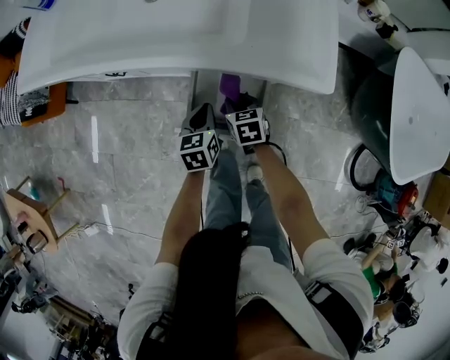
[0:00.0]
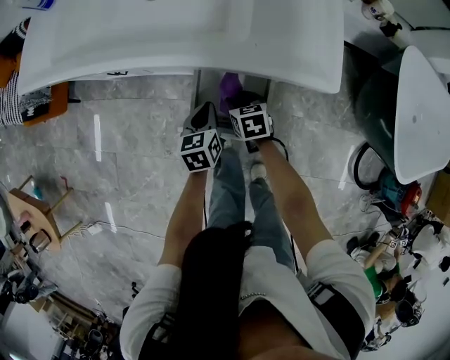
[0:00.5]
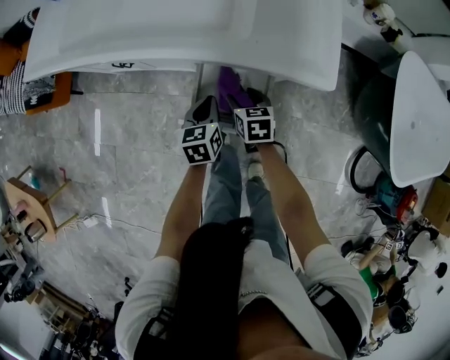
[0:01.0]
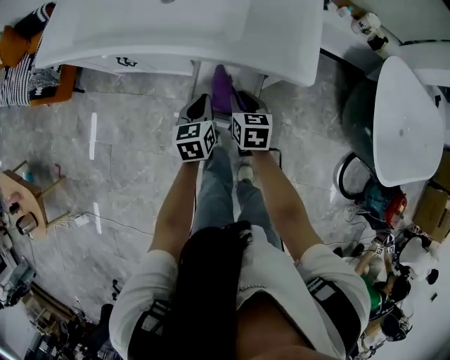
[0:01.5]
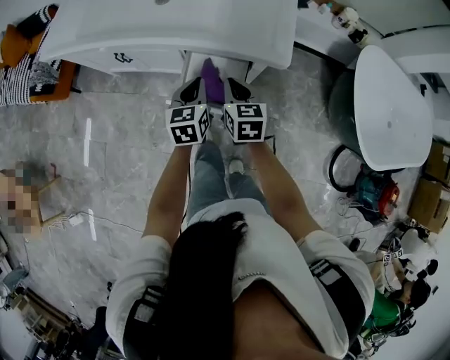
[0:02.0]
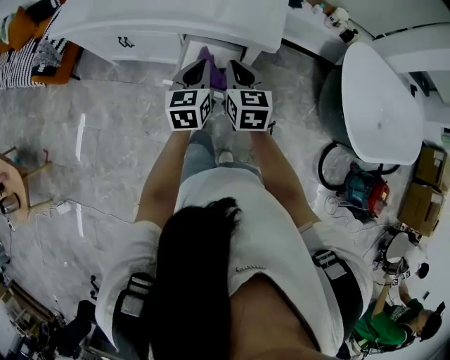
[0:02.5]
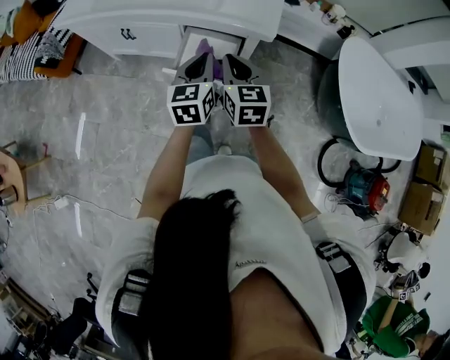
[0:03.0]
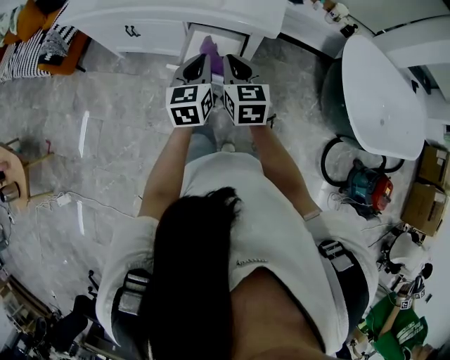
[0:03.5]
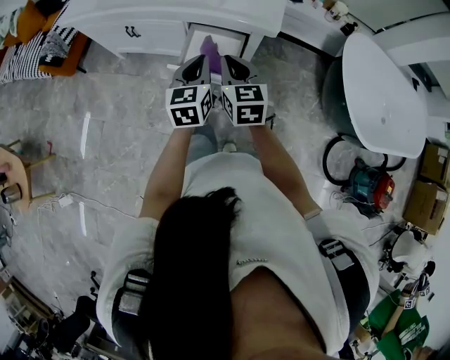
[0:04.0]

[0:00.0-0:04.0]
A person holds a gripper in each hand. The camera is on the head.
0:00.0 to 0:02.0: Both grippers travel together upward, about 20 cm. The right gripper rotates about 20 degrees, and opens and closes again.
0:02.0 to 0:04.0: Both grippers move backward and upward, some 15 cm.

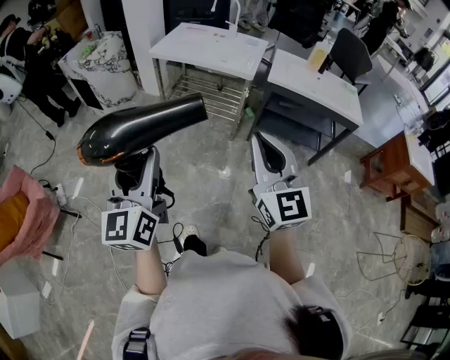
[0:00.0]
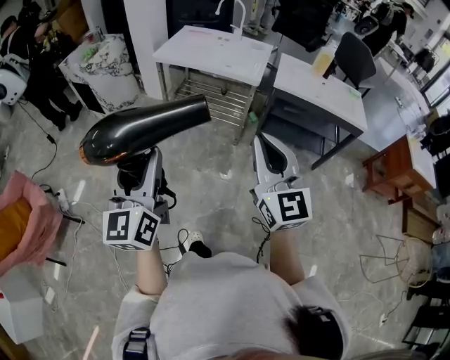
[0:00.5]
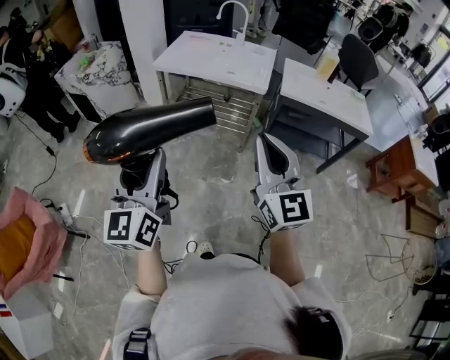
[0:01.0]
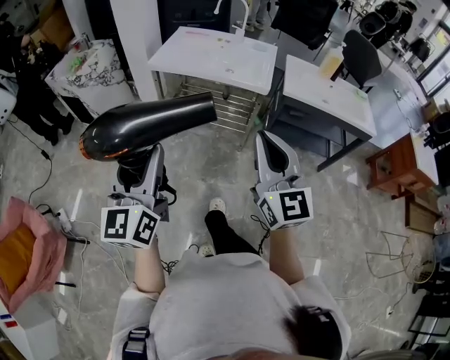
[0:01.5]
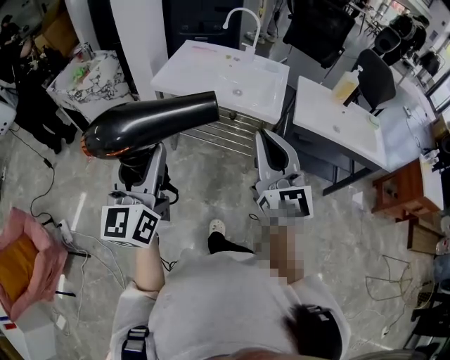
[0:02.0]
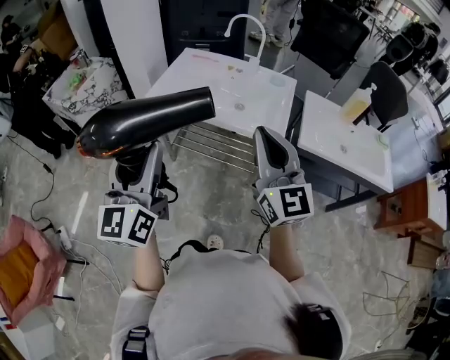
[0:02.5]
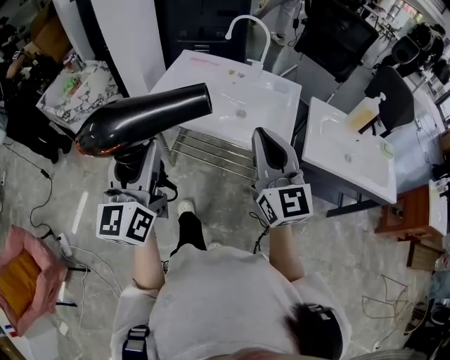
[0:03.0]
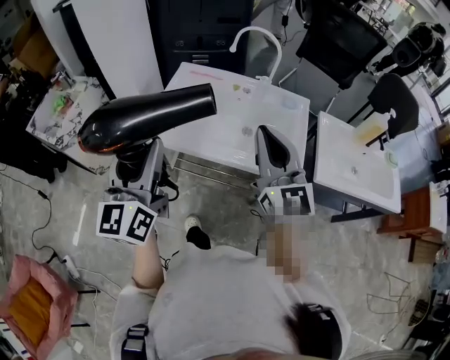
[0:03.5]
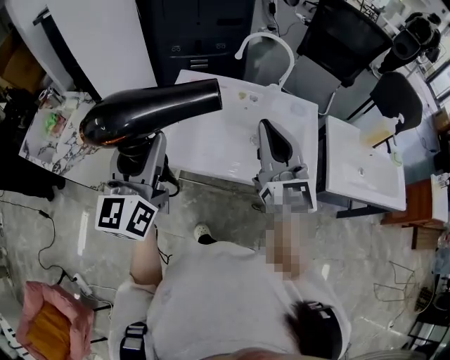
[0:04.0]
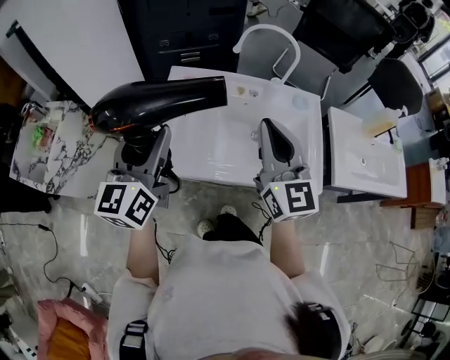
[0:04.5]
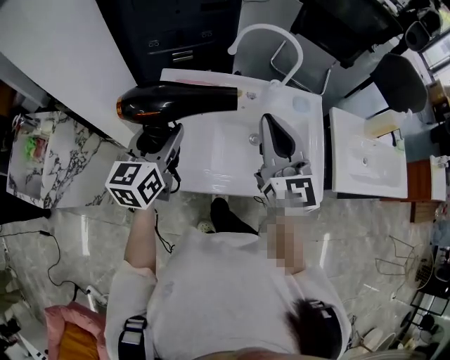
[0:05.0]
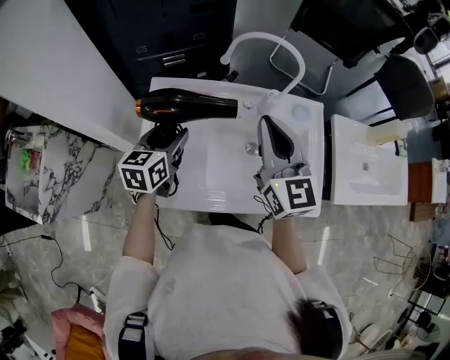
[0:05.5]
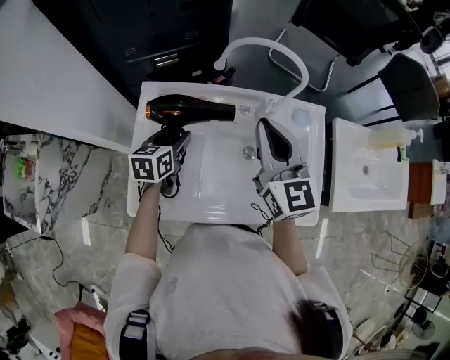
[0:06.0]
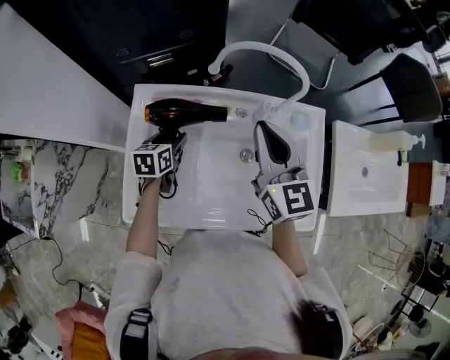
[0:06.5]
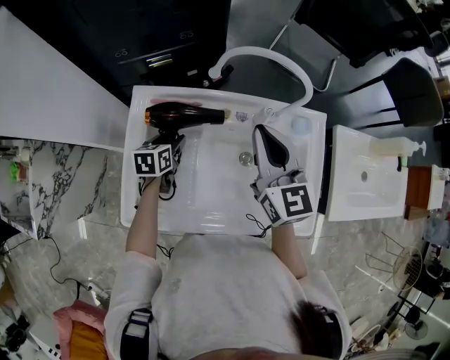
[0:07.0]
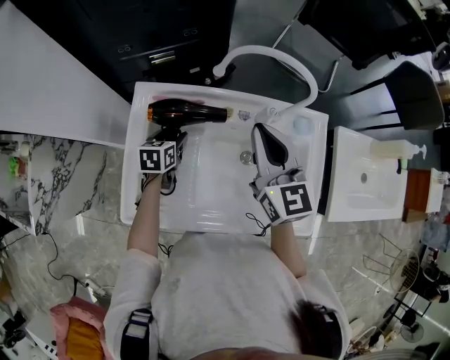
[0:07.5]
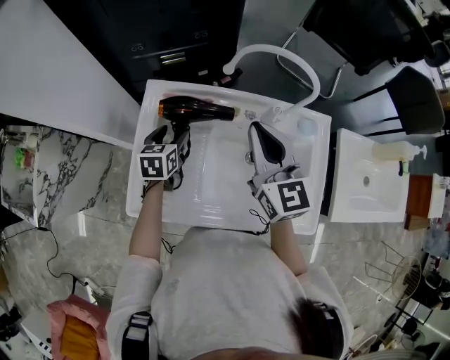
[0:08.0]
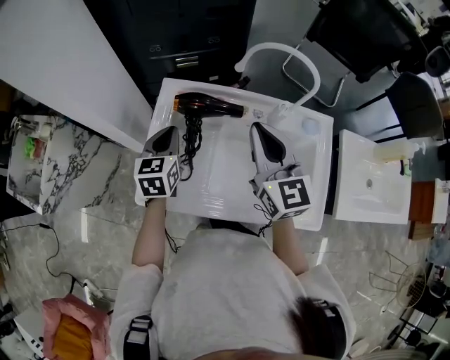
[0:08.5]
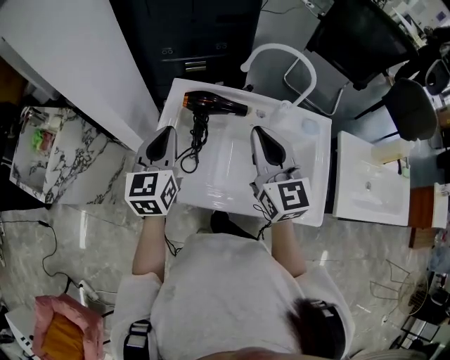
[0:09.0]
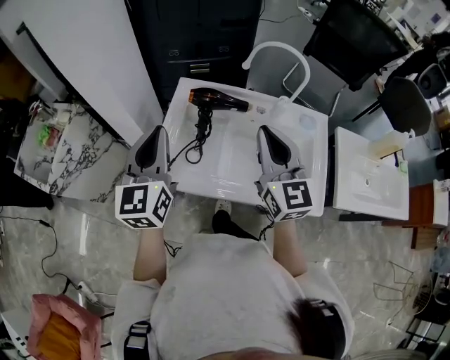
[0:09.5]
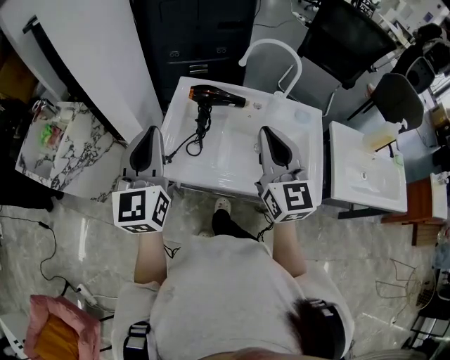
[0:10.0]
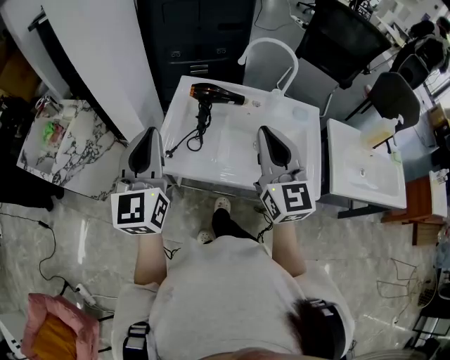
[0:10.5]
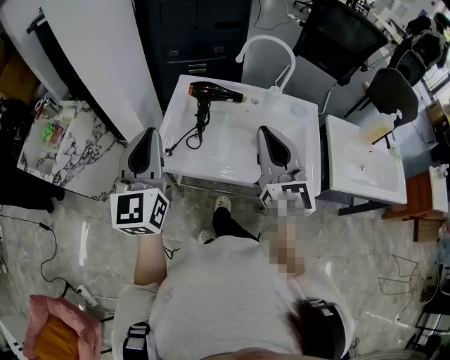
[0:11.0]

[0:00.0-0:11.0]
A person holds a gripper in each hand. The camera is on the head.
0:00.0 to 0:02.0: Both grippers travel together forward, approximately 30 cm.
0:02.0 to 0:03.5: The two grippers go some 35 cm forward.
0:03.5 to 0:05.5: The left gripper is displaced forward and downward by about 50 cm, and tips its fingers downward by approximately 40 degrees. Meanwhile the right gripper goes about 30 cm forward.
0:05.5 to 0:07.5: The right gripper is displaced forward and downward by approximately 10 cm. Meanwhile the left gripper heads downward and forward, covering some 20 cm, and swivels about 20 degrees.
0:07.5 to 0:09.0: The left gripper shifts approximately 30 cm upward and backward, angles its fingers upward, by some 40 degrees, and closes up; the right gripper moves backward, to the left and upward, approximately 15 cm.
0:09.0 to 0:11.0: The left gripper moves backward and upward, some 20 cm. The right gripper is displaced backward by about 15 cm.

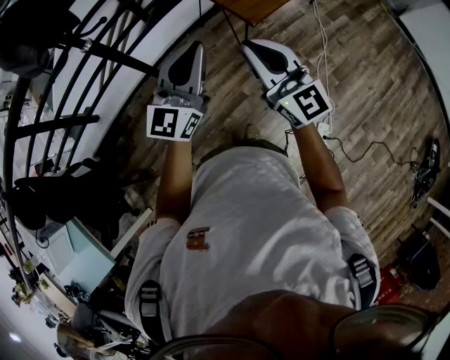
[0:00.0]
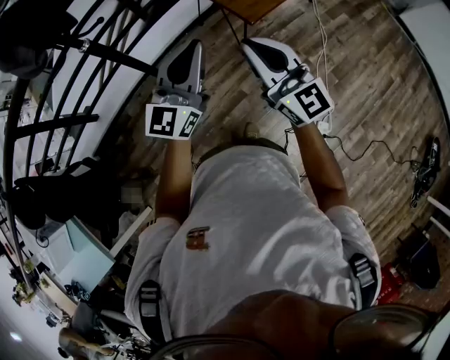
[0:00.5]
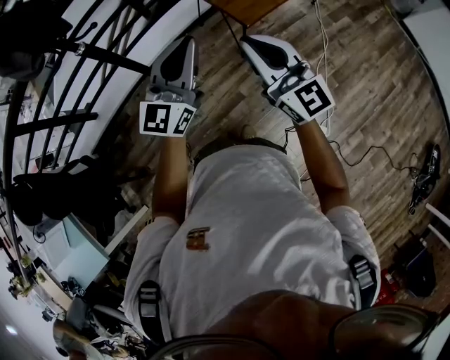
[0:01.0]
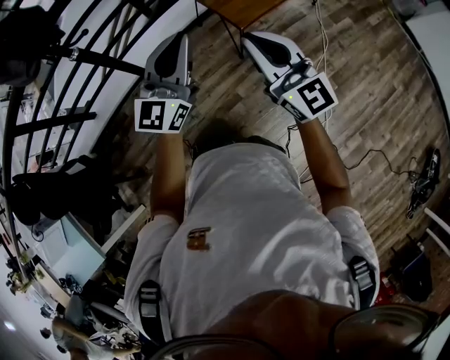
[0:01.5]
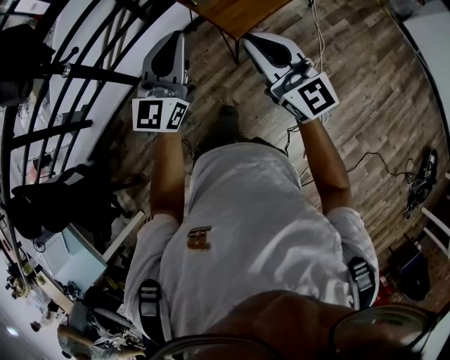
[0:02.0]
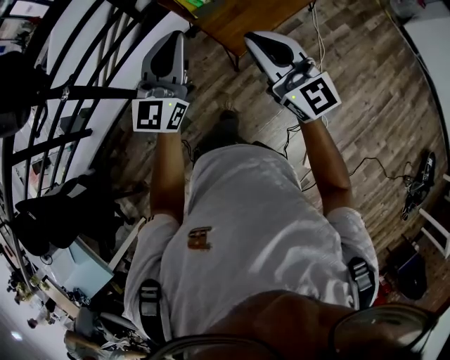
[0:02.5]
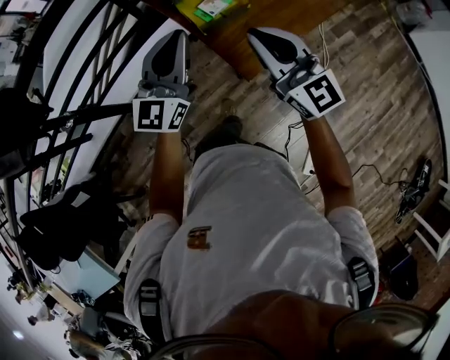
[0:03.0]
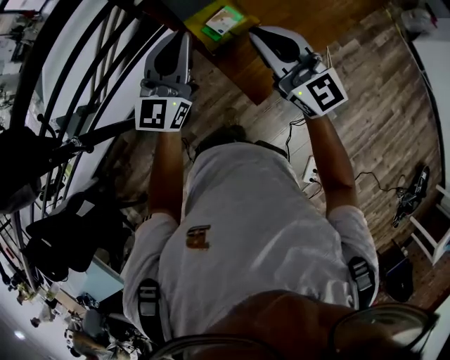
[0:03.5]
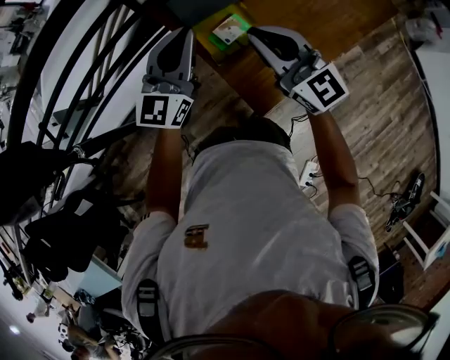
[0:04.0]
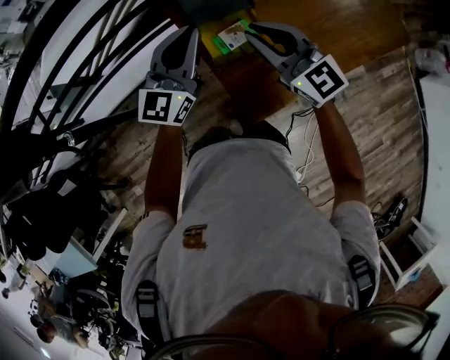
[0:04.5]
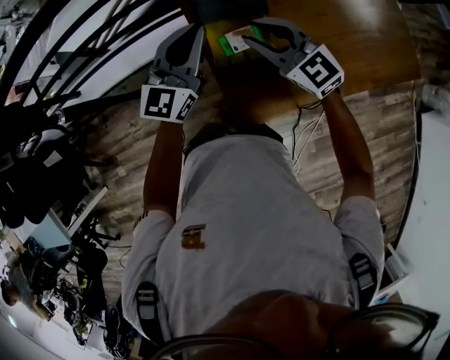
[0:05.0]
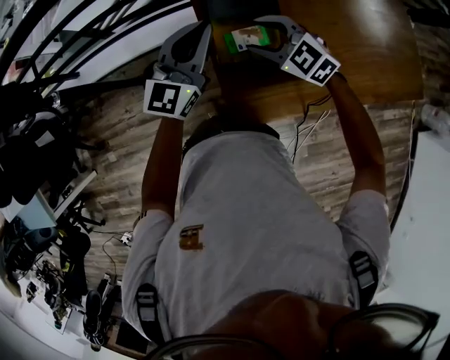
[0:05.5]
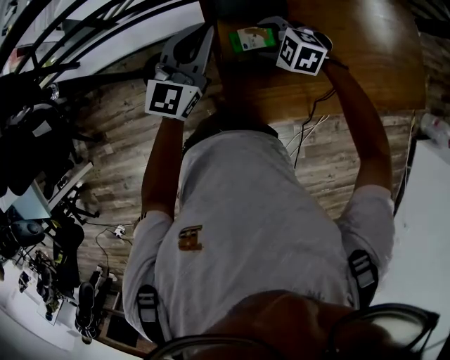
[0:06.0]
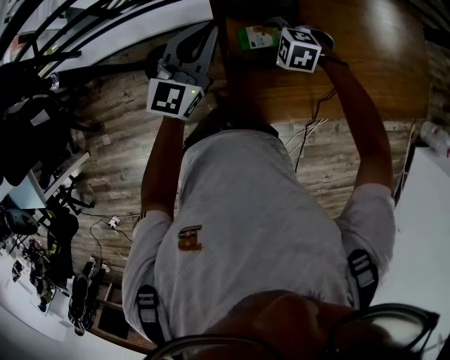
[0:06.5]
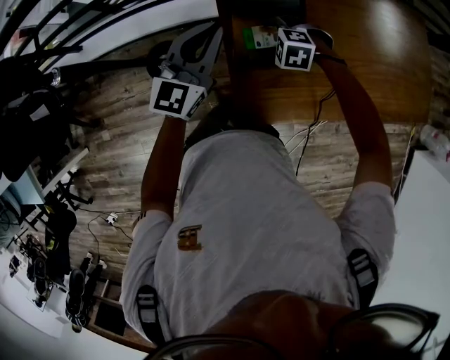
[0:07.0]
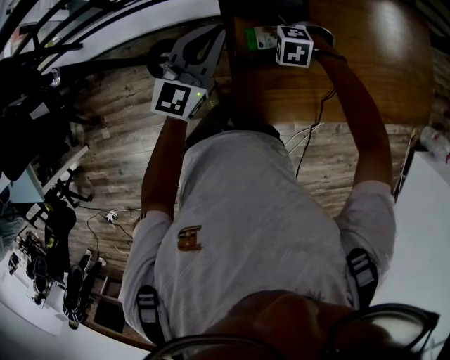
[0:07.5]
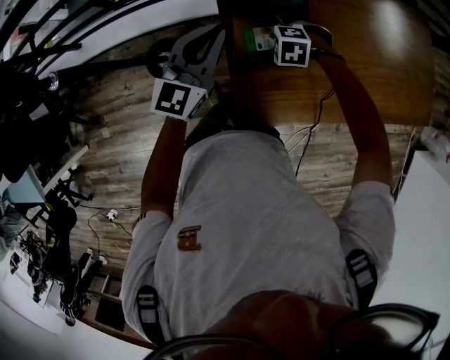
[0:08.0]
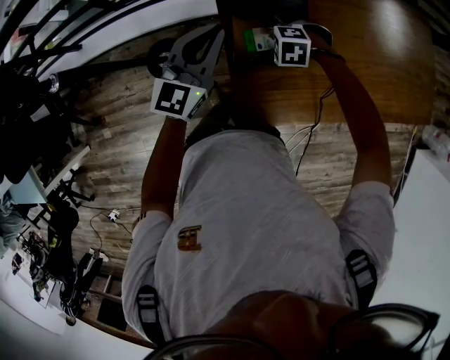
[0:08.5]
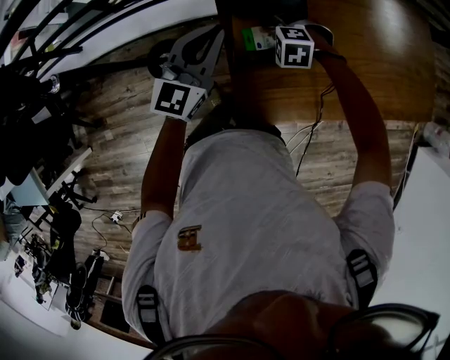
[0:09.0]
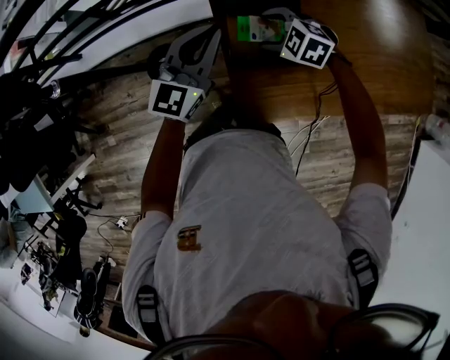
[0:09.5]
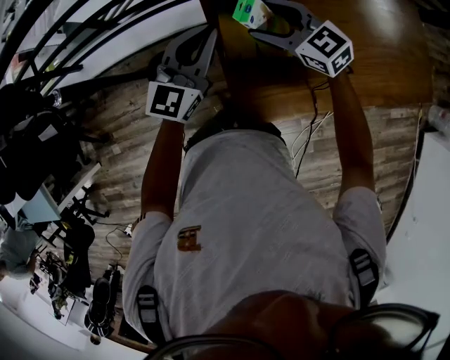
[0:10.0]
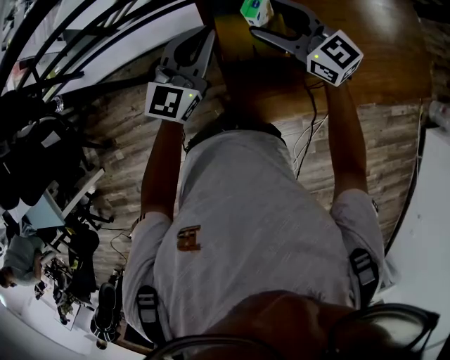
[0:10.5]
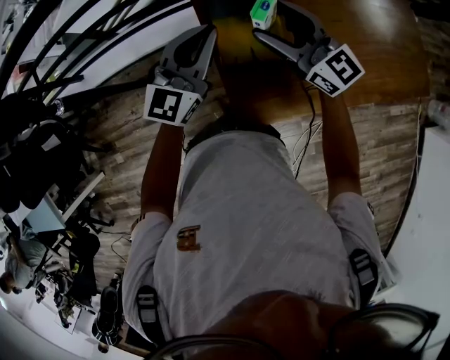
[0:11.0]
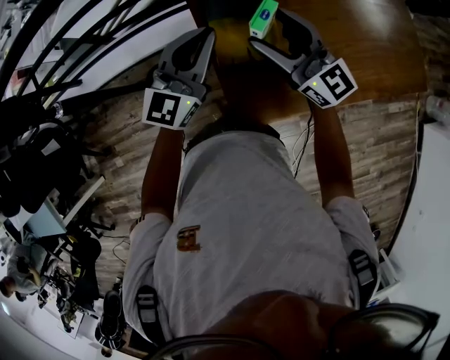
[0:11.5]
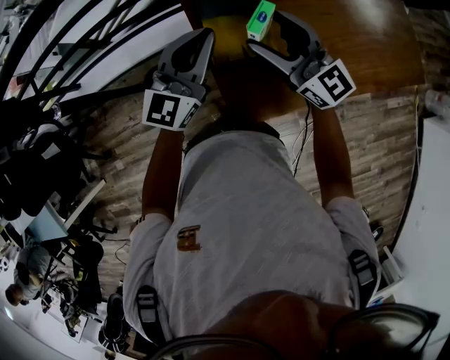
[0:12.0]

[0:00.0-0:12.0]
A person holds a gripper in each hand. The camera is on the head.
0:00.0 to 0:02.0: The right gripper moves to the right and forward, roughly 15 cm. Meanwhile the left gripper heads forward and to the right, covering some 15 cm.
0:02.0 to 0:04.0: The two grippers travel together, forward, approximately 40 cm.
0:04.0 to 0:06.0: The right gripper heads downward, covering about 20 cm, angles its fingers downward, by roughly 60 degrees, and opens its fingers. The left gripper shifts some 5 cm downward, and turns by roughly 20 degrees.
0:06.0 to 0:08.0: The right gripper is displaced downward by about 10 cm, and rotates roughly 20 degrees.
0:08.0 to 0:10.0: The right gripper goes about 20 cm upward, and points its fingers about 50 degrees further upward.
0:10.0 to 0:12.0: The right gripper shifts roughly 10 cm upward and backward, and swivels roughly 30 degrees; the left gripper moves roughly 5 cm.
